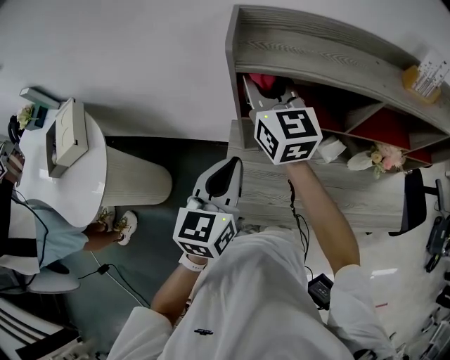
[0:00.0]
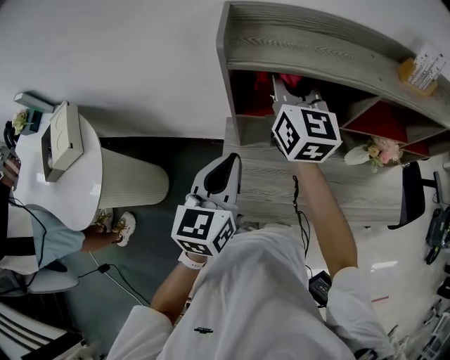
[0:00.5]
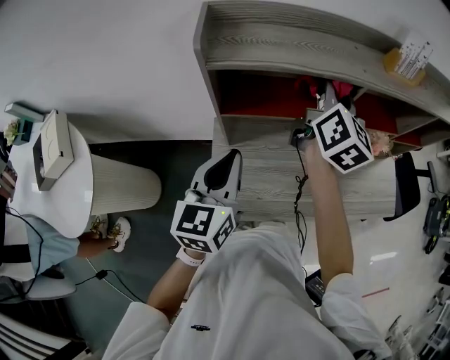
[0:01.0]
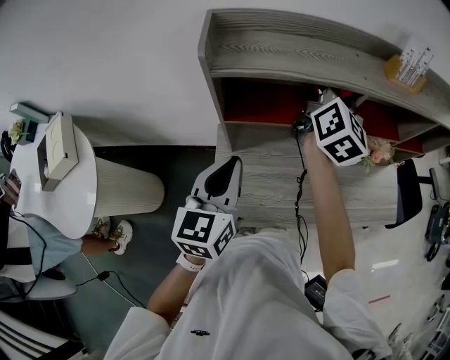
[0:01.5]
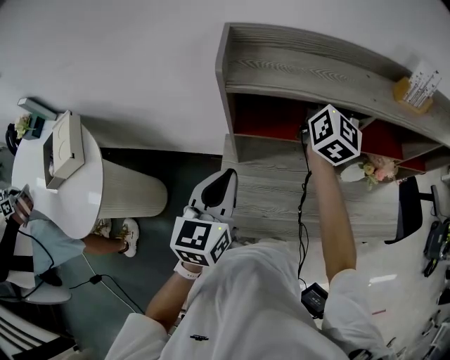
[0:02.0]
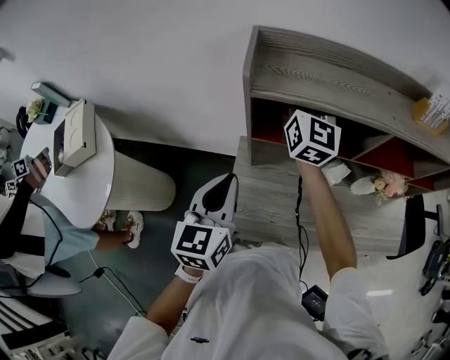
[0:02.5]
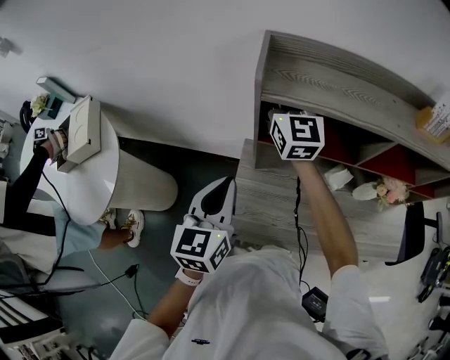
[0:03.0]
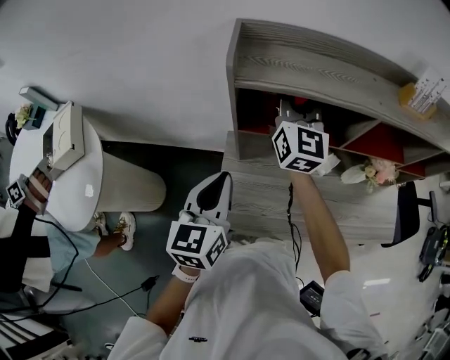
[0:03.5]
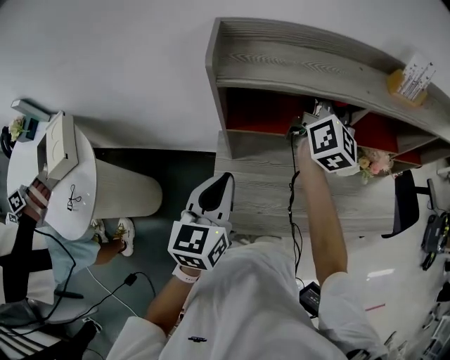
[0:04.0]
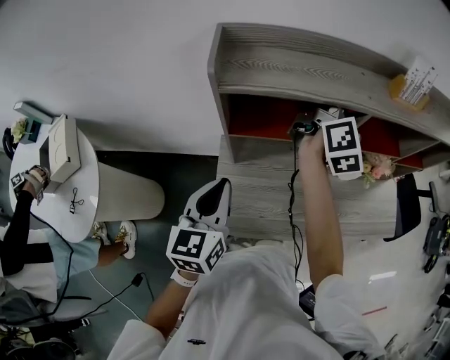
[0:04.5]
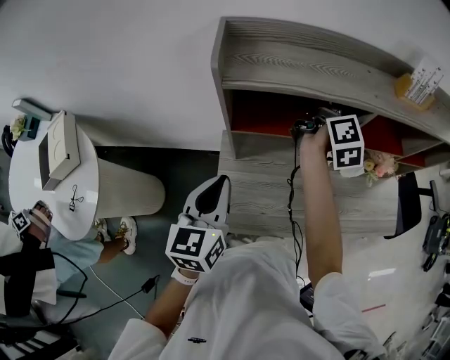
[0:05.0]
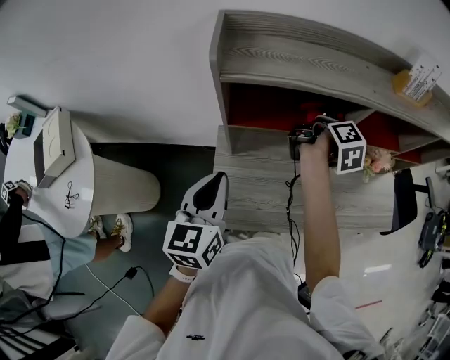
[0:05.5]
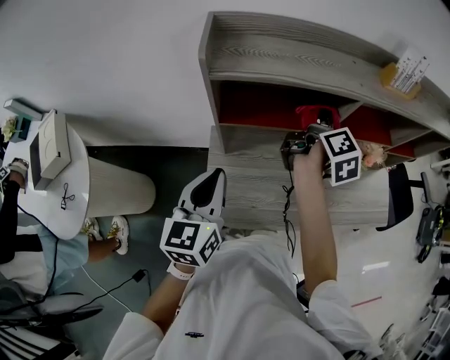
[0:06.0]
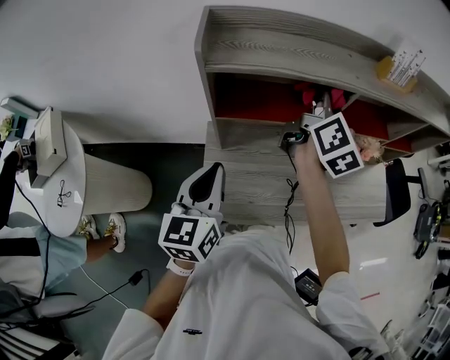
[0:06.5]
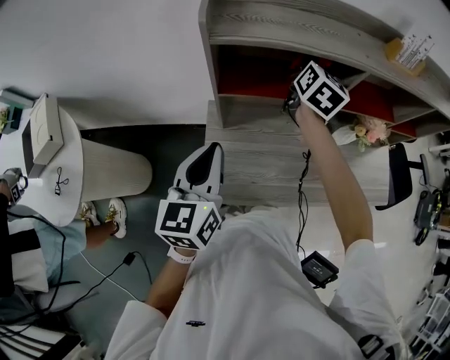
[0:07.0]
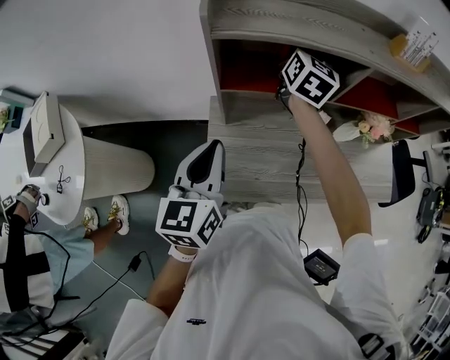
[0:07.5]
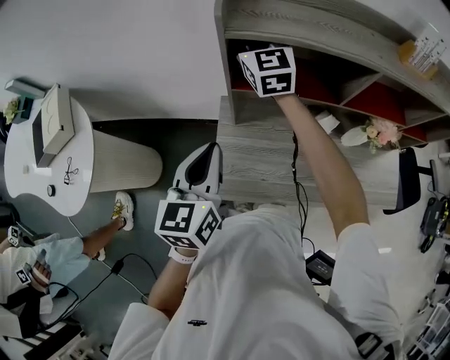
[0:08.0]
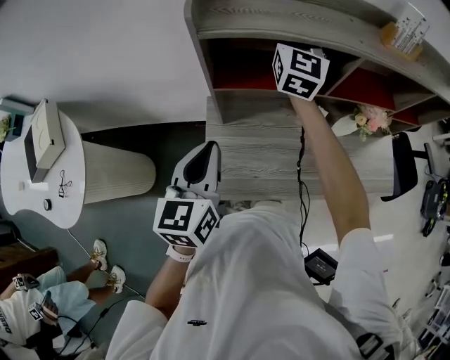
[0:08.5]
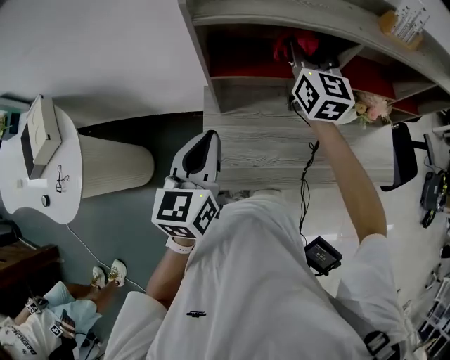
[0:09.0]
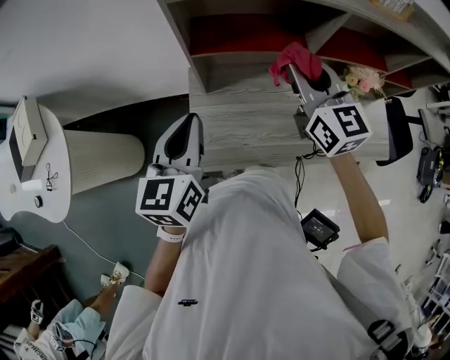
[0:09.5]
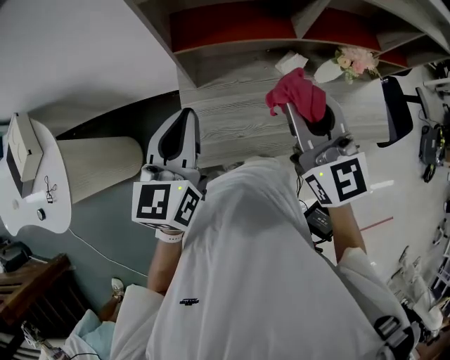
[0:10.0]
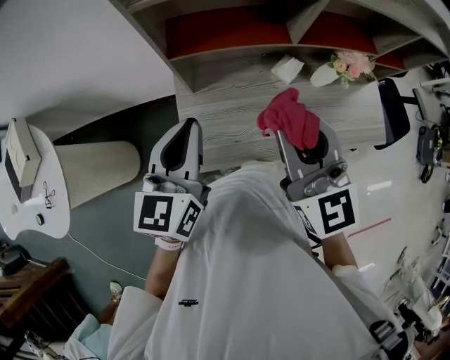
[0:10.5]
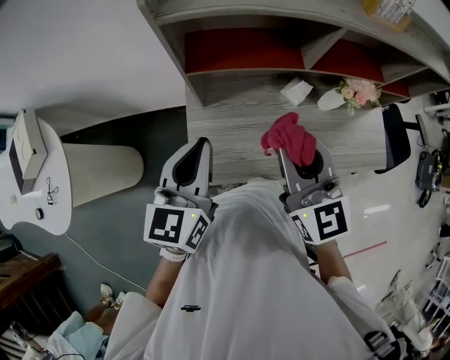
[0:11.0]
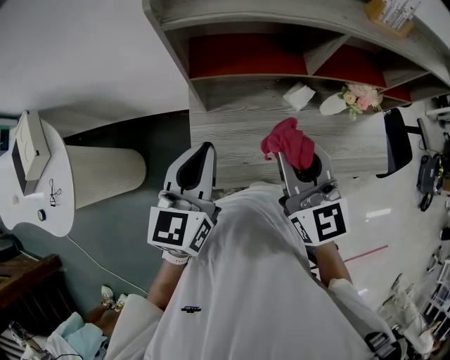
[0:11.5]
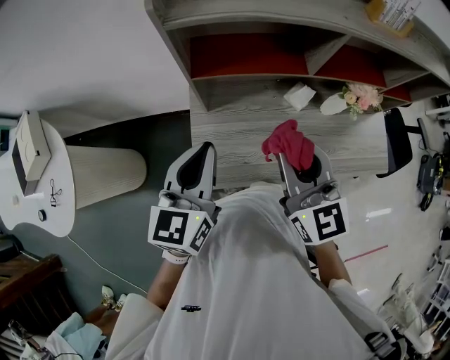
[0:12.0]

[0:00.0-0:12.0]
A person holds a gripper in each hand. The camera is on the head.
0:00.0 to 0:02.0: The right gripper moves to the right and forward, roughly 25 cm, and changes its angle by approximately 40 degrees.
0:02.0 to 0:04.0: The right gripper travels to the left and back again, about 20 cm each way.
0:04.0 to 0:06.0: The right gripper moves downward and to the right, approximately 10 cm, and tips its fingers downward by some 30 degrees.
0:06.0 to 0:08.0: The right gripper goes up and down, roughly 10 cm each way, reversing 2 times, and rotates approximately 90 degrees.
0:08.0 to 0:10.0: The right gripper shifts approximately 35 cm backward and to the right. The left gripper goes roughly 5 cm to the right.
0:10.0 to 0:12.0: The grippers stay close to where they were, moving slightly.

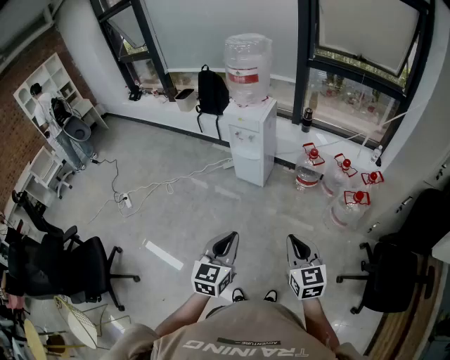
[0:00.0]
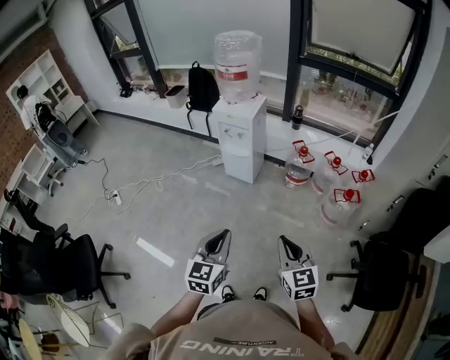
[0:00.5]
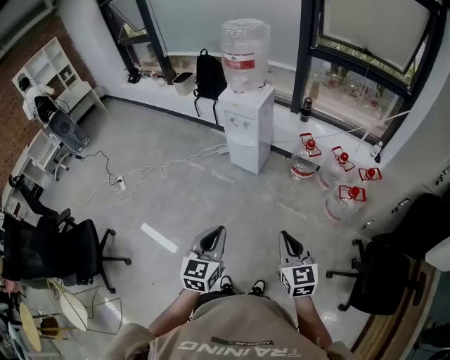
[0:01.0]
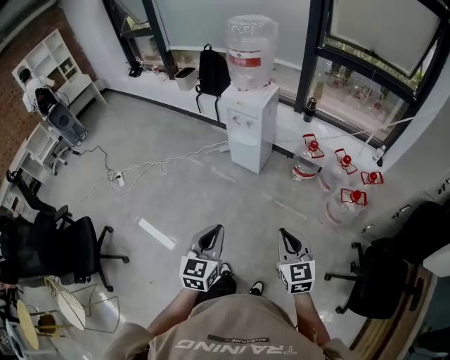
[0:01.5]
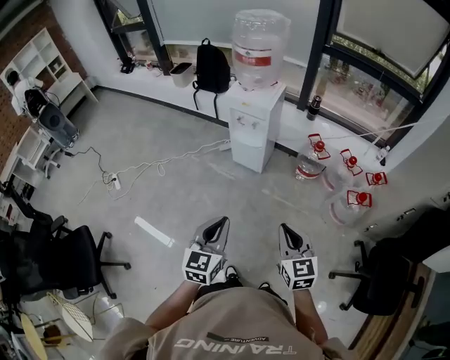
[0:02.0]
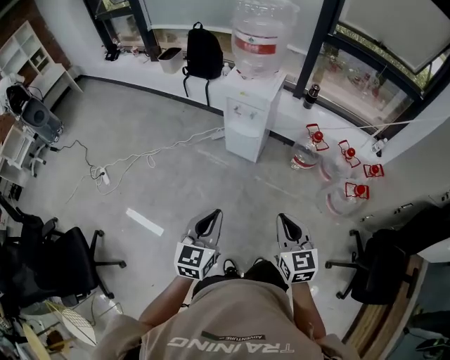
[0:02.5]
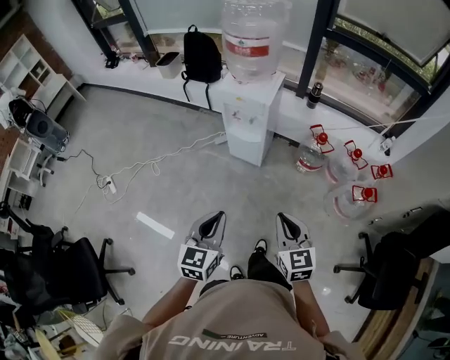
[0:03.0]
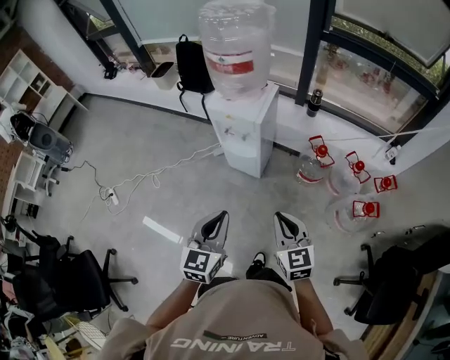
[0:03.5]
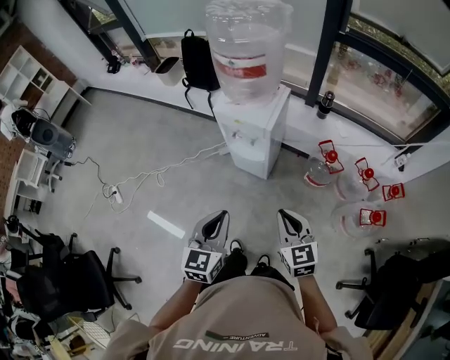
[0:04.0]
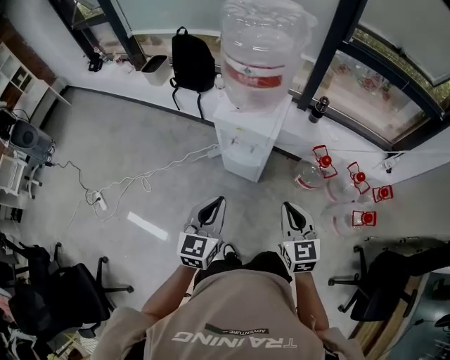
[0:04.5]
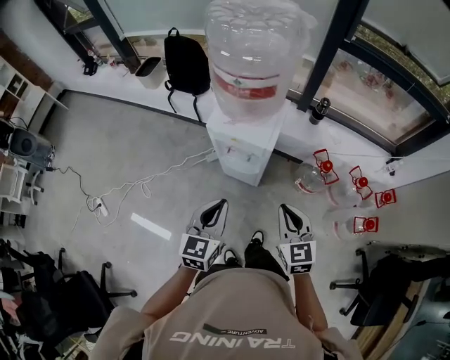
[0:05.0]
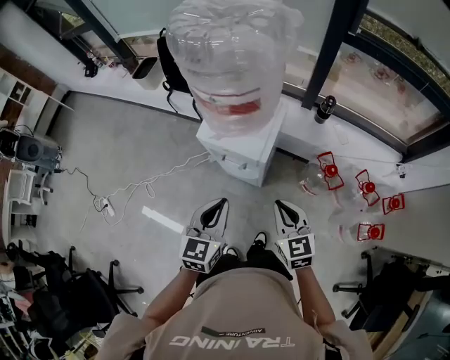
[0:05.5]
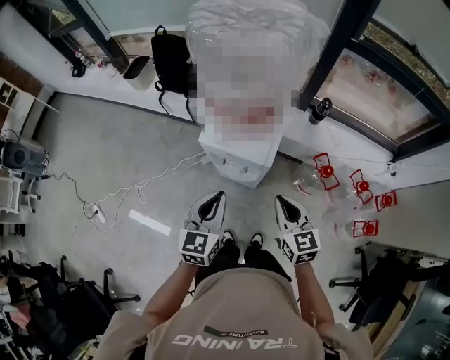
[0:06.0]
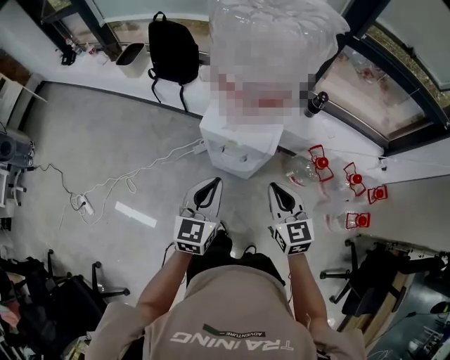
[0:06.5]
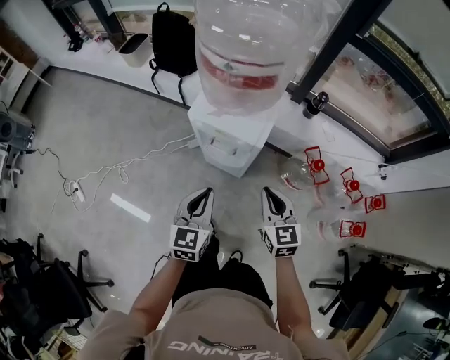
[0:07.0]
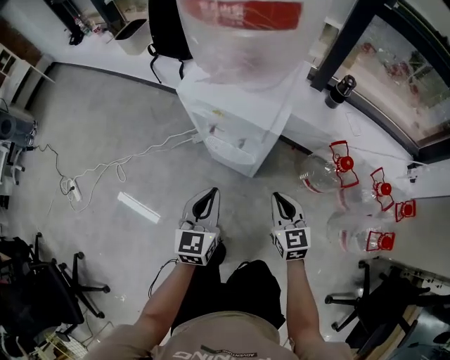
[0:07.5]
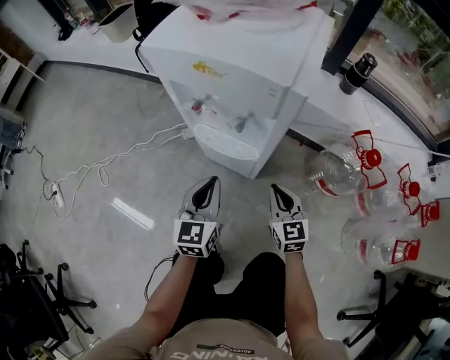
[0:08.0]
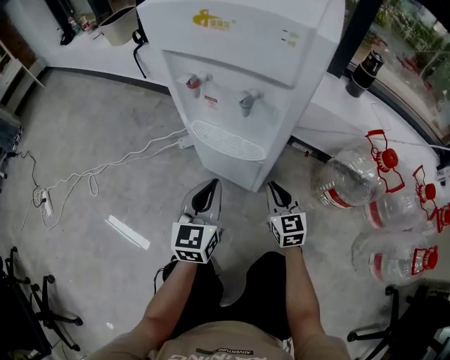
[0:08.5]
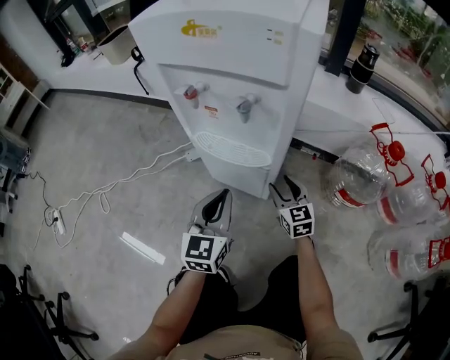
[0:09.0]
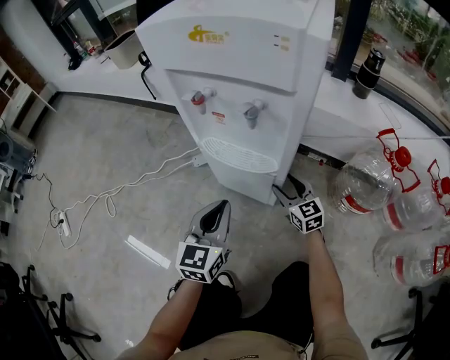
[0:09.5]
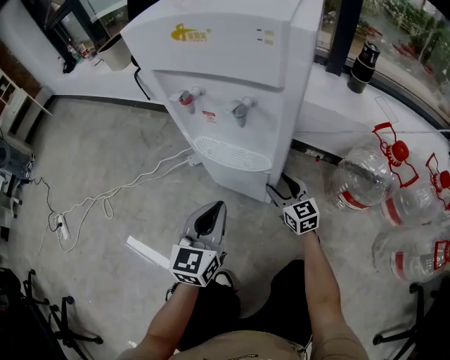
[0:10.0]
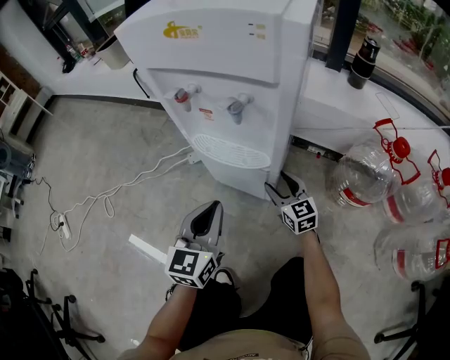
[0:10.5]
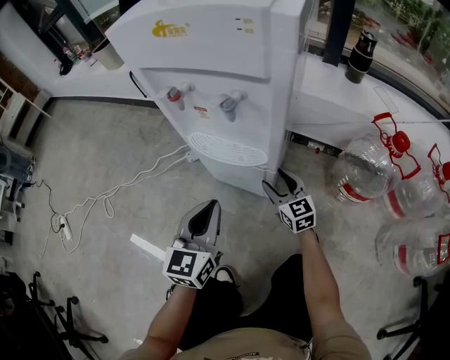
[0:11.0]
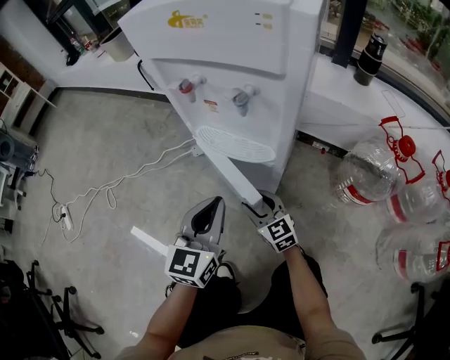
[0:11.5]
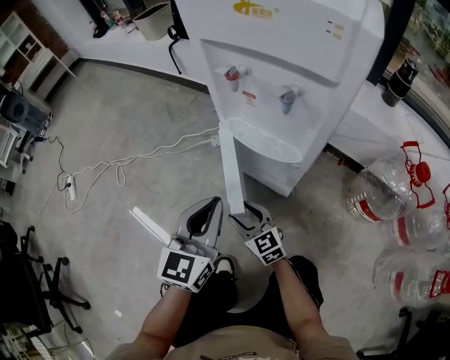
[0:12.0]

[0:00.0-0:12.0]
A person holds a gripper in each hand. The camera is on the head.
0:00.0 to 0:02.0: Both grippers travel together forward and to the left, approximately 15 cm.
0:02.0 to 0:04.0: Both grippers move forward, about 30 cm.
0:04.0 to 0:06.0: The two grippers go roughly 25 cm forward.
0:06.0 to 0:08.0: The grippers both shift downward by about 50 cm.
0:08.0 to 0:10.0: The right gripper is displaced downward and forward by some 20 cm, and opens its fingers; the left gripper moves downward, some 5 cm.
0:10.0 to 0:12.0: The right gripper heads to the left and backward, covering roughly 25 cm, and changes its angle by about 20 degrees, while the left gripper moves to the left, some 5 cm.

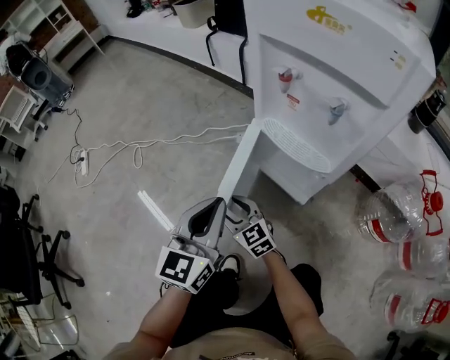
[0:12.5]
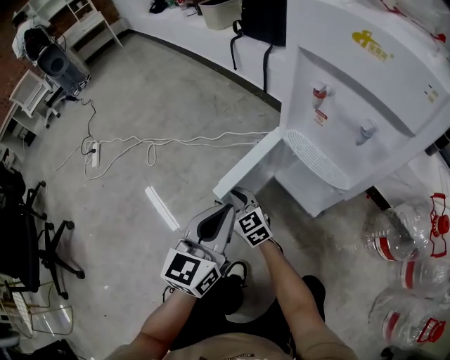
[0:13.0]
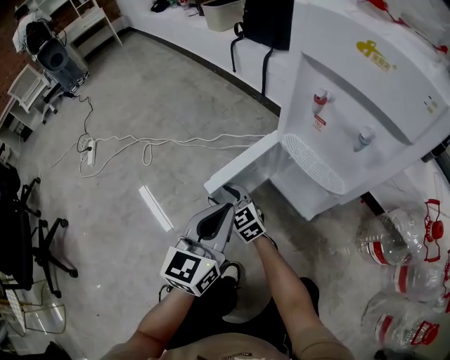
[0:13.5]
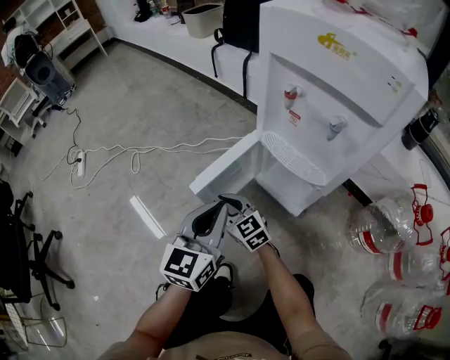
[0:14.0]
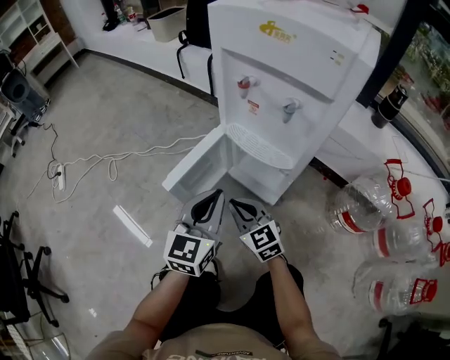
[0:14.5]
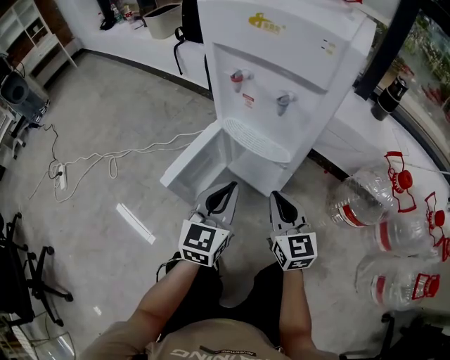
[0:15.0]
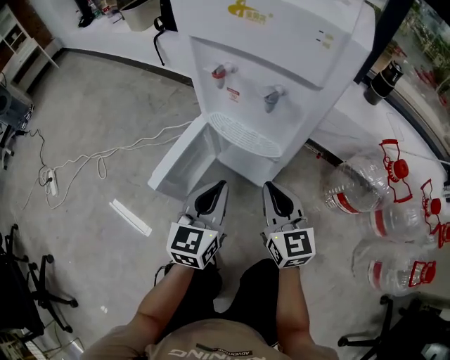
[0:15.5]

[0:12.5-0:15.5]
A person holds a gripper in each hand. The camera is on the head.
0:12.5 to 0:14.0: The right gripper closes up.
0:14.0 to 0:15.5: The right gripper shifts by some 30 cm, and changes its angle by approximately 40 degrees. The left gripper moves about 10 cm.
